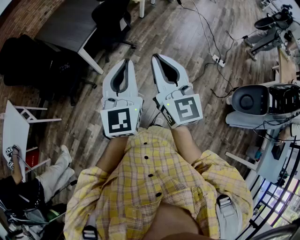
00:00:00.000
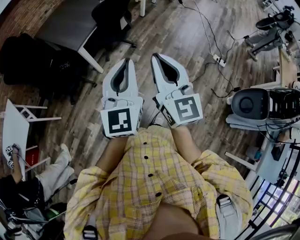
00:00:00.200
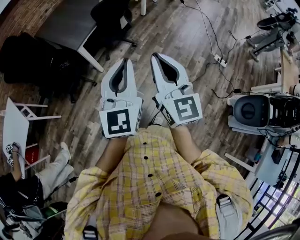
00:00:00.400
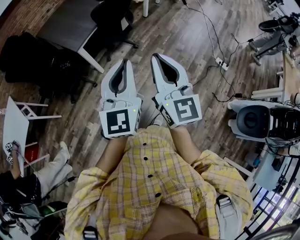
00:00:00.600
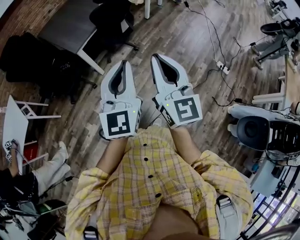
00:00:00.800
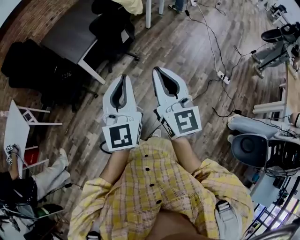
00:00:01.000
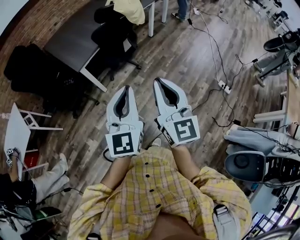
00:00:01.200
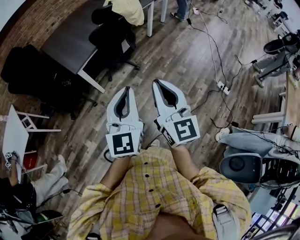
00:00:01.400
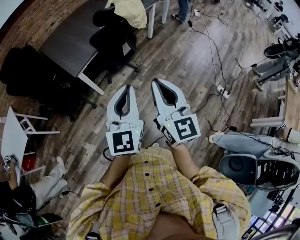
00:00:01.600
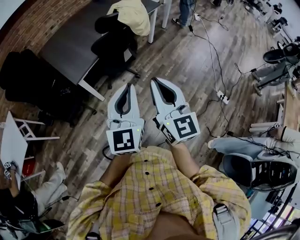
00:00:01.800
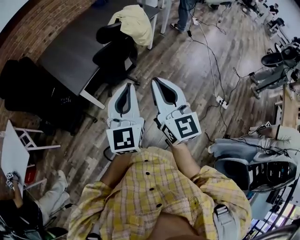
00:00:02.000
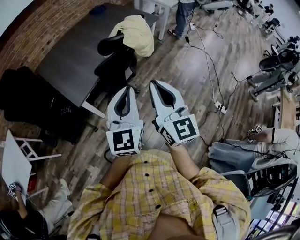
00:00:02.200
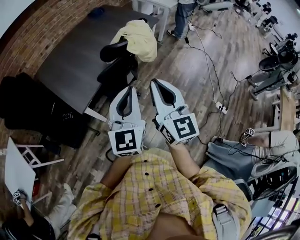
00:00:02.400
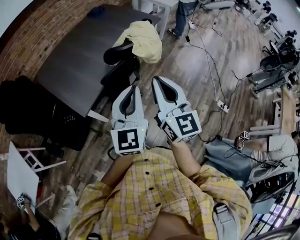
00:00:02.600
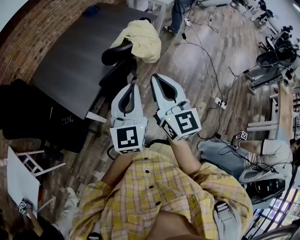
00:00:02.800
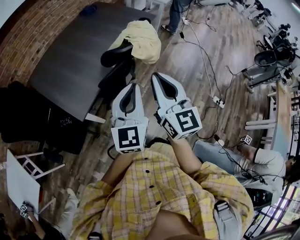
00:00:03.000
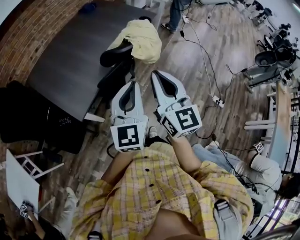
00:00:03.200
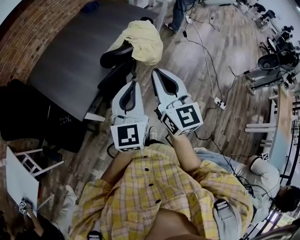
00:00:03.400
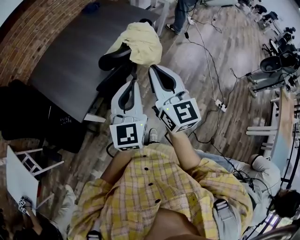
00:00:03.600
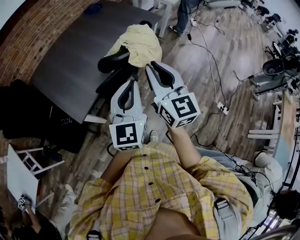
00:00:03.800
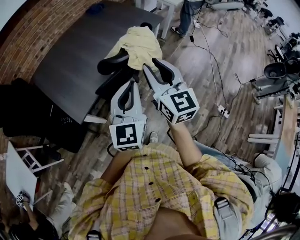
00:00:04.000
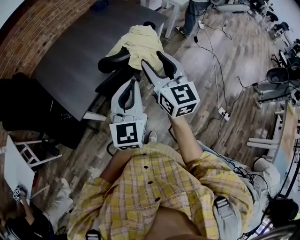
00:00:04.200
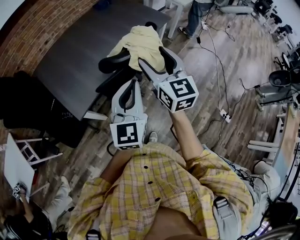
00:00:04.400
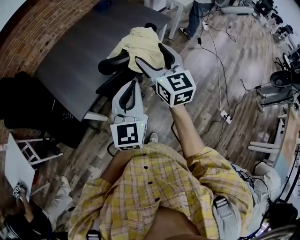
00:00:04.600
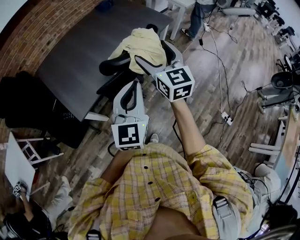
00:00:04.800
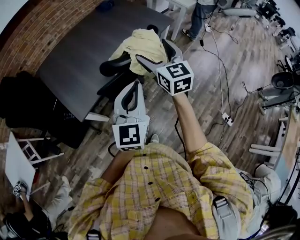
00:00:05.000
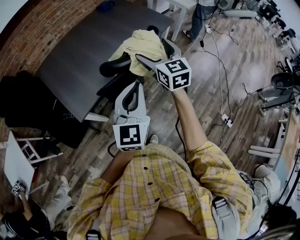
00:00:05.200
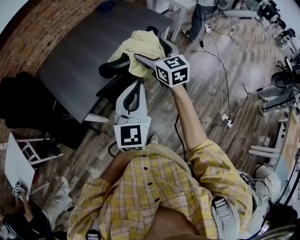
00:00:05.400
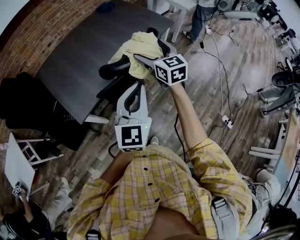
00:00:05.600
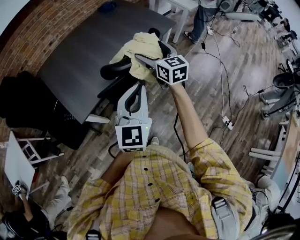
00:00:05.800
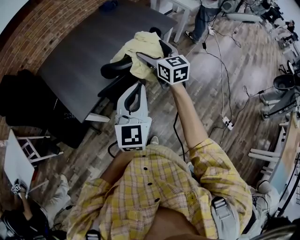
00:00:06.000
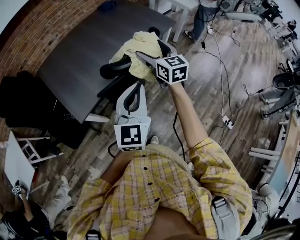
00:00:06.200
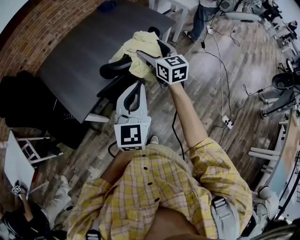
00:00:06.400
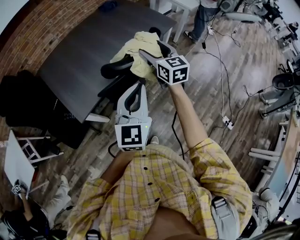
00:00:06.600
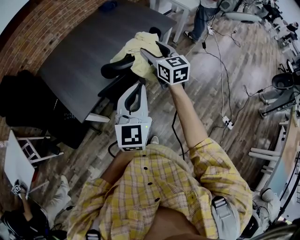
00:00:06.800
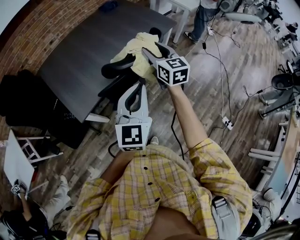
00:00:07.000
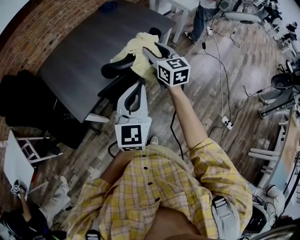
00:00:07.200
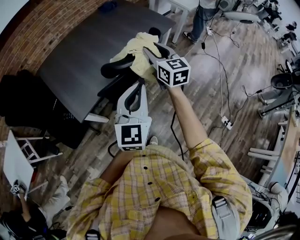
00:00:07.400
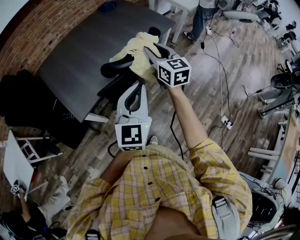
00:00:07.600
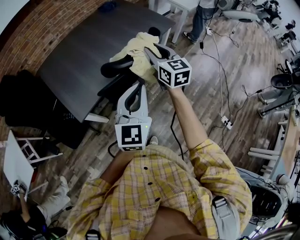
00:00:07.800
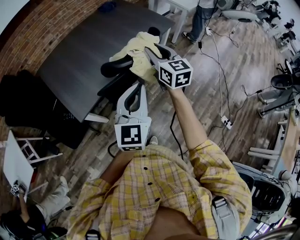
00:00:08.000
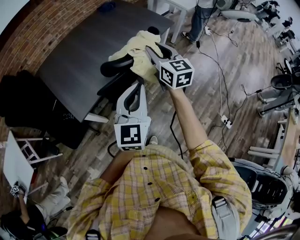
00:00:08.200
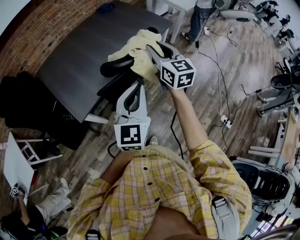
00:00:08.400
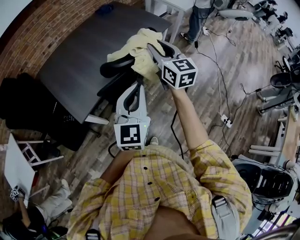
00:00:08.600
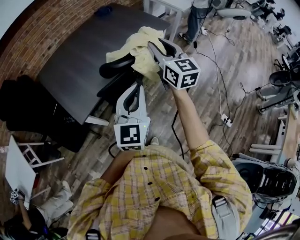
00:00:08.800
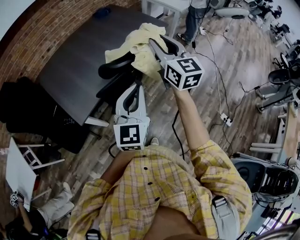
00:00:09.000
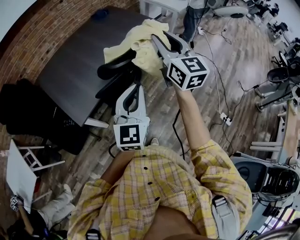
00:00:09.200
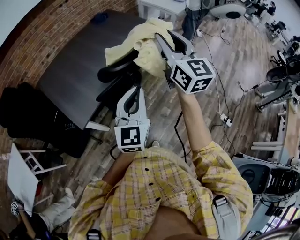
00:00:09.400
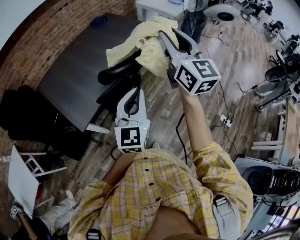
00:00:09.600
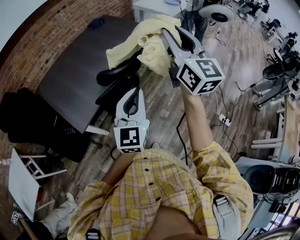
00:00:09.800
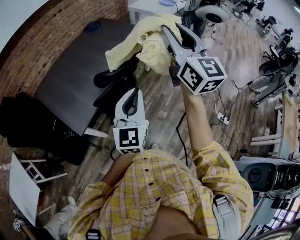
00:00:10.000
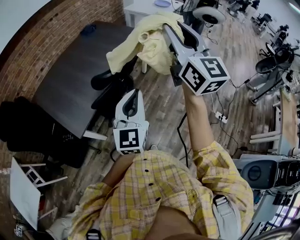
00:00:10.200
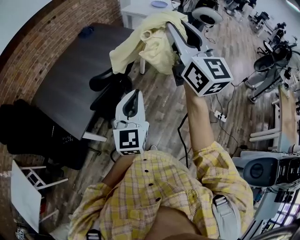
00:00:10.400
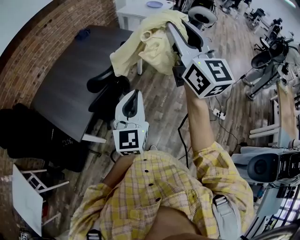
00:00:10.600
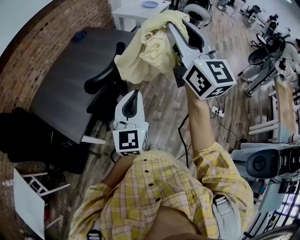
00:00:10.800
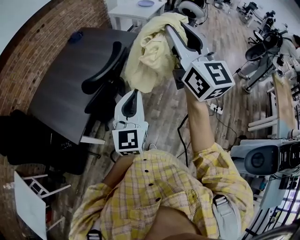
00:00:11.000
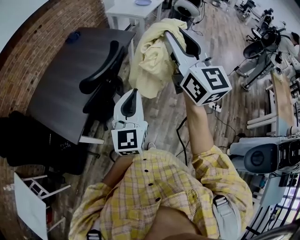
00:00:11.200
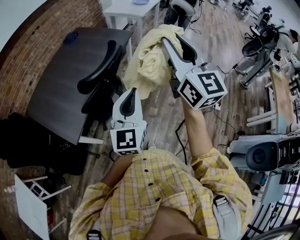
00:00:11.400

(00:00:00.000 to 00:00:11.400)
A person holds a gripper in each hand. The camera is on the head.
00:00:00.000 - 00:00:01.400: Both grippers move to the right and forward, some 15 cm.
00:00:01.400 - 00:00:02.800: The grippers both shift forward by some 35 cm.
00:00:02.800 - 00:00:04.200: The left gripper goes roughly 10 cm forward, while the right gripper shifts roughly 15 cm forward, and opens its fingers.
00:00:04.200 - 00:00:05.600: The right gripper shifts about 15 cm forward and downward, and opens up.
00:00:05.600 - 00:00:07.200: The right gripper closes up.
00:00:07.200 - 00:00:08.600: The right gripper changes place by some 5 cm.
00:00:08.600 - 00:00:10.000: The left gripper ends up roughly 5 cm from where it was, while the right gripper shifts some 20 cm upward and backward, and changes its angle by roughly 20 degrees.
00:00:10.000 - 00:00:11.400: The left gripper heads to the right, covering approximately 5 cm. Meanwhile the right gripper heads backward and to the right, covering about 10 cm.

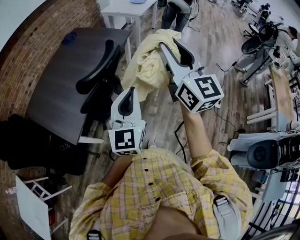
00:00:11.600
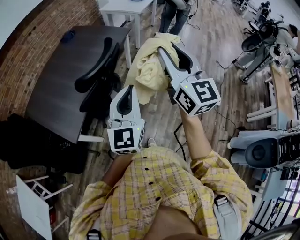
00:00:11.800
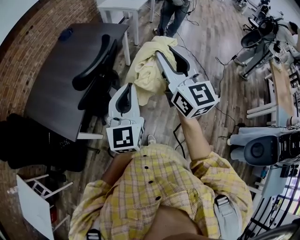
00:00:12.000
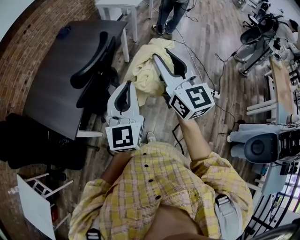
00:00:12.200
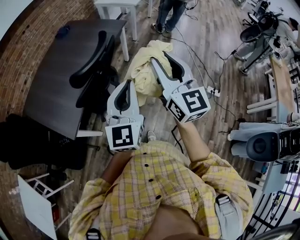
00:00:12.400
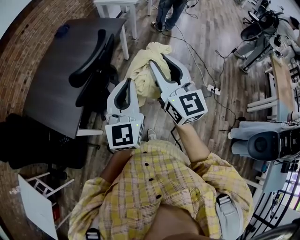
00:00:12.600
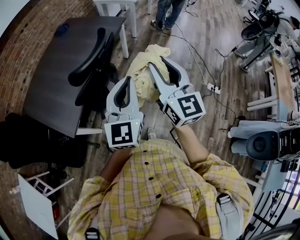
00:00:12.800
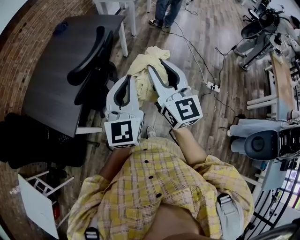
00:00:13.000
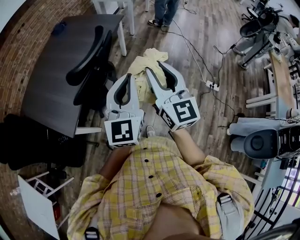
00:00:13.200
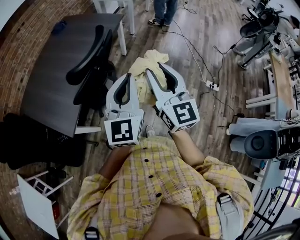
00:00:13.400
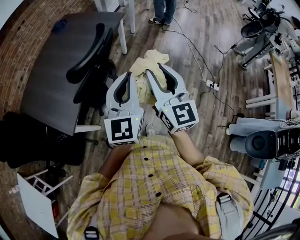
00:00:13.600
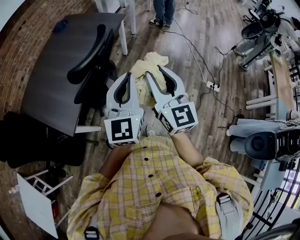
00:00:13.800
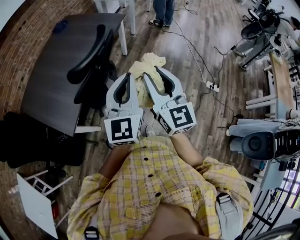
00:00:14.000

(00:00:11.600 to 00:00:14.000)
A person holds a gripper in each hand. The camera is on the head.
00:00:11.600 - 00:00:12.800: The right gripper shifts some 10 cm downward.
00:00:12.800 - 00:00:14.000: The grippers stay close to where they were, moving slightly.

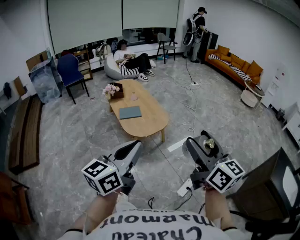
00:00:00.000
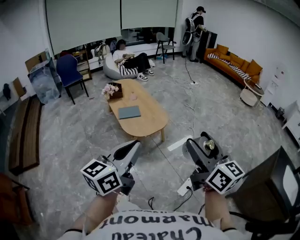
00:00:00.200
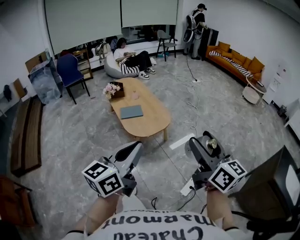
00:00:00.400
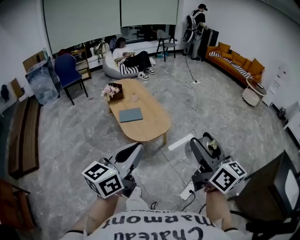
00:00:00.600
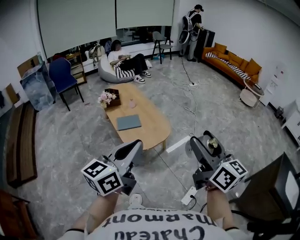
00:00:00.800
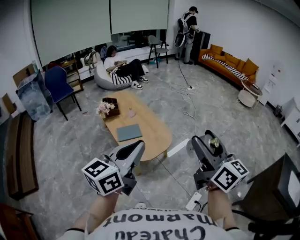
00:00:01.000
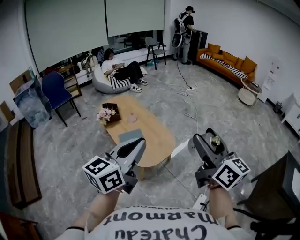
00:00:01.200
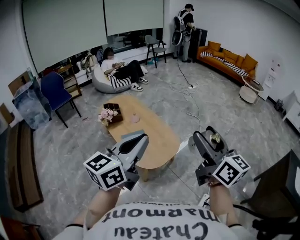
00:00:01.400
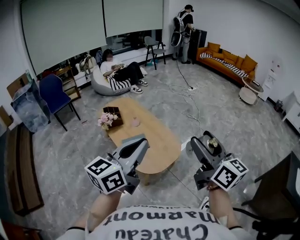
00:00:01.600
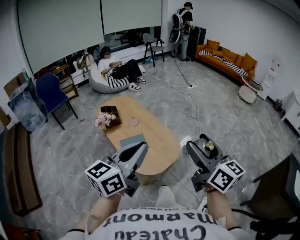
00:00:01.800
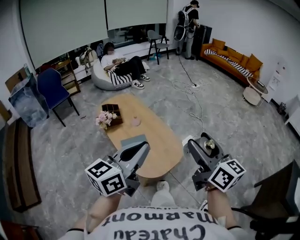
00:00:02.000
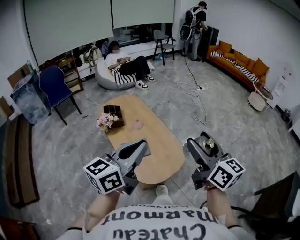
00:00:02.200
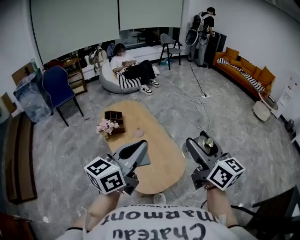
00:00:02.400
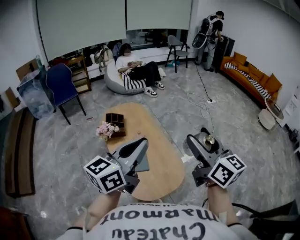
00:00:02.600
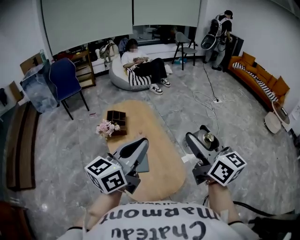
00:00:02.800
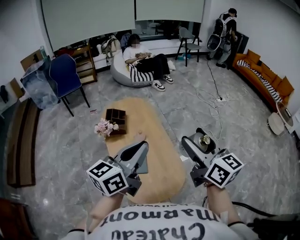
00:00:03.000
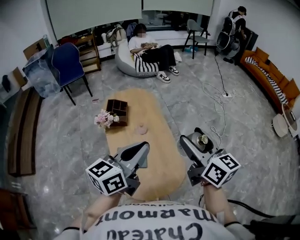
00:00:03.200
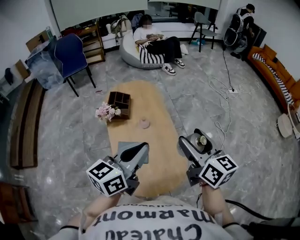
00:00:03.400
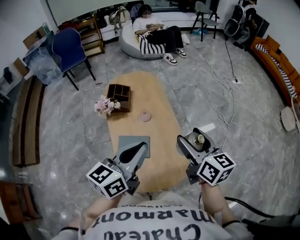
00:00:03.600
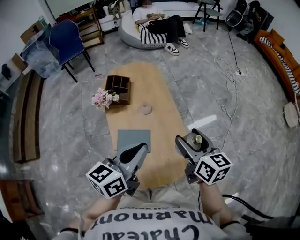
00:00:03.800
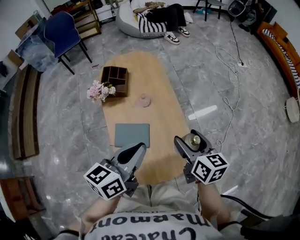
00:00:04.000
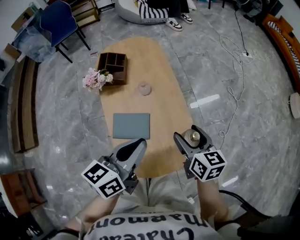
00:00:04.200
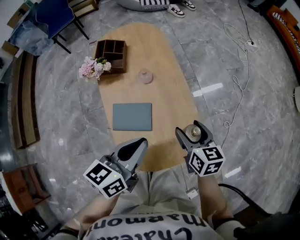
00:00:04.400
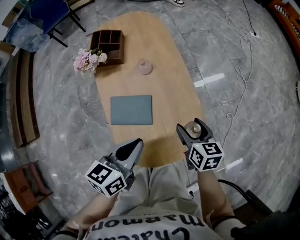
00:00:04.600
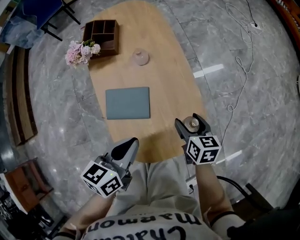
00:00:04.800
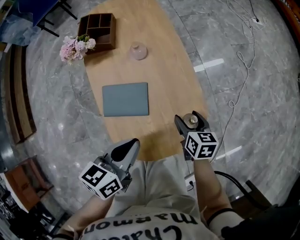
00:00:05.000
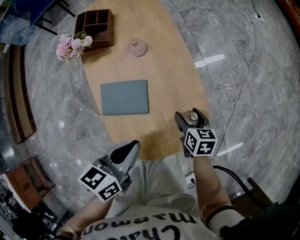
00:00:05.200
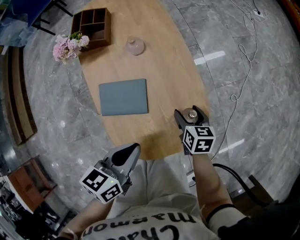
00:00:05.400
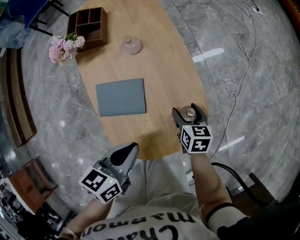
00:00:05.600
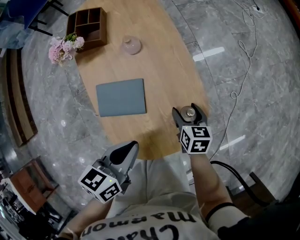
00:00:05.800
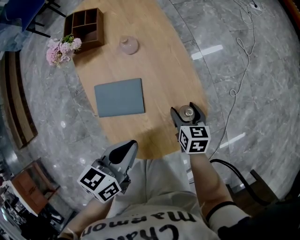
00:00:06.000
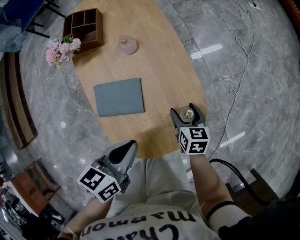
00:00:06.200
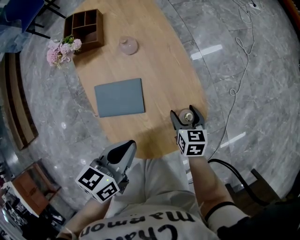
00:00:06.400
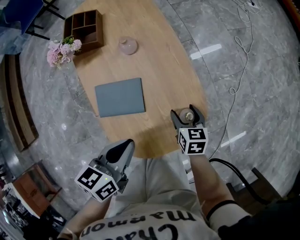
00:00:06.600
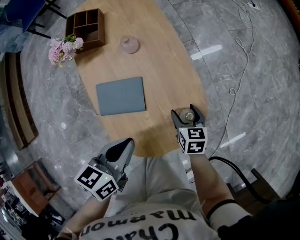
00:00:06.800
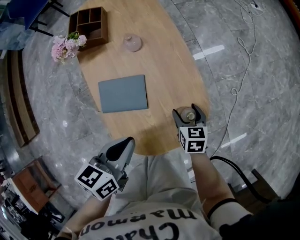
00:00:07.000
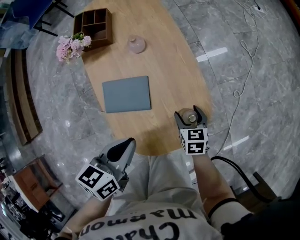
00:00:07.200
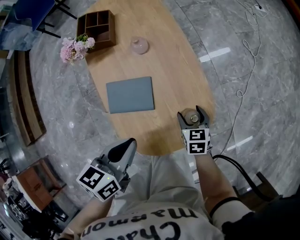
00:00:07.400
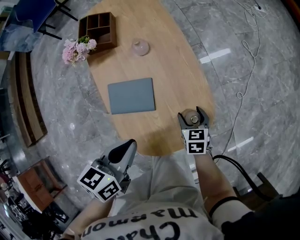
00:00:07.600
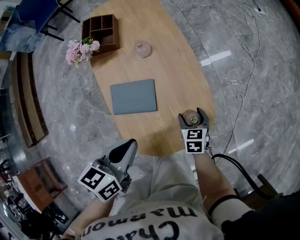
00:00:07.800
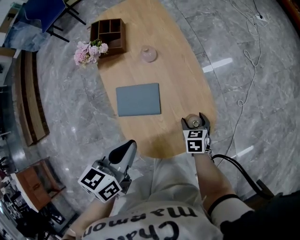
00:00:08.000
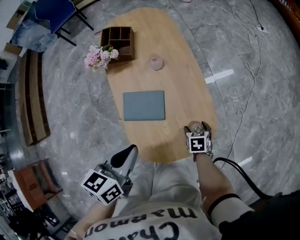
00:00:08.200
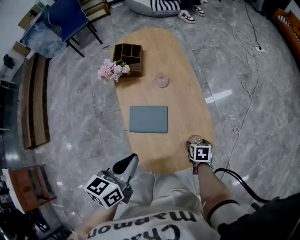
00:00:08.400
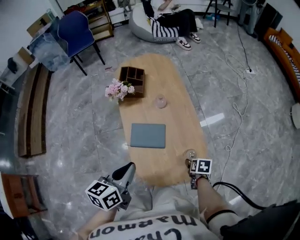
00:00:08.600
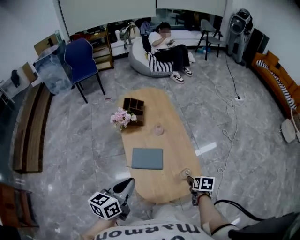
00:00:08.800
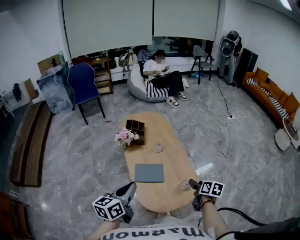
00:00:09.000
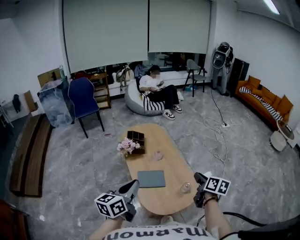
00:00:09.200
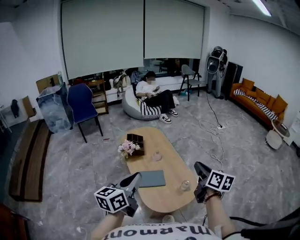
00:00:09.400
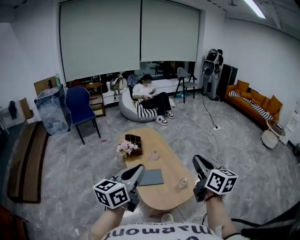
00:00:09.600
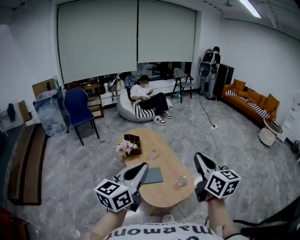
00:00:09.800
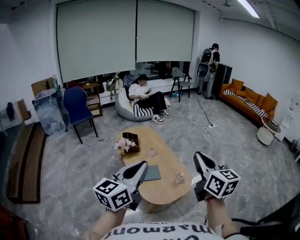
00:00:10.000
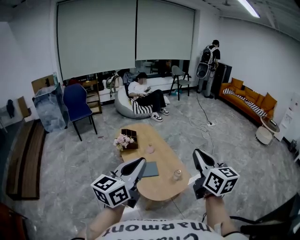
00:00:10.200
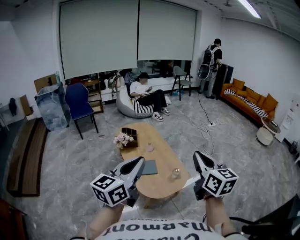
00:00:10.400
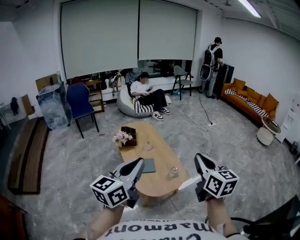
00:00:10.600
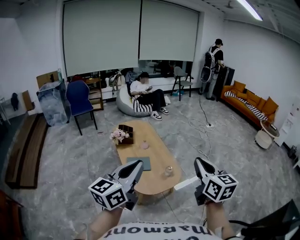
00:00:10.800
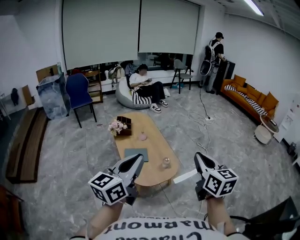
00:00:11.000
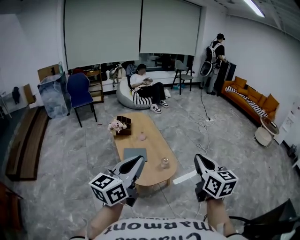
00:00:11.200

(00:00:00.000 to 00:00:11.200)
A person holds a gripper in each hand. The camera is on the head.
00:00:00.000 - 00:00:01.600: The two grippers go roughly 35 cm forward and to the left.
00:00:01.600 - 00:00:03.200: Both grippers move forward, some 35 cm. The right gripper turns by roughly 30 degrees, while the left gripper turns by about 20 degrees.
00:00:03.200 - 00:00:04.800: The grippers both shift downward by some 35 cm. The right gripper angles its fingers downward, by approximately 40 degrees, while the left gripper tips its fingers downward by approximately 30 degrees.
00:00:04.800 - 00:00:06.400: The right gripper moves downward, approximately 10 cm.
00:00:06.400 - 00:00:08.000: The left gripper heads upward, covering roughly 5 cm.
00:00:08.000 - 00:00:09.600: The right gripper shifts about 60 cm upward, tips its fingers upward by about 50 degrees, and closes. Meanwhile the left gripper travels upward and backward by roughly 35 cm, and tilts its fingers some 40 degrees upward.
00:00:09.600 - 00:00:11.200: The two grippers go roughly 25 cm to the right and backward.
